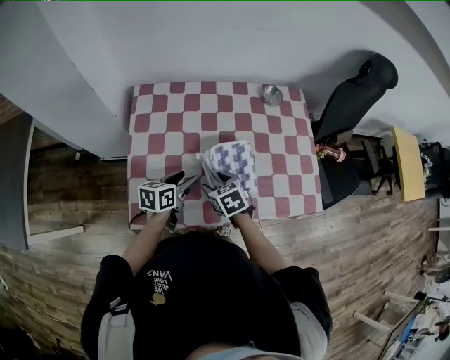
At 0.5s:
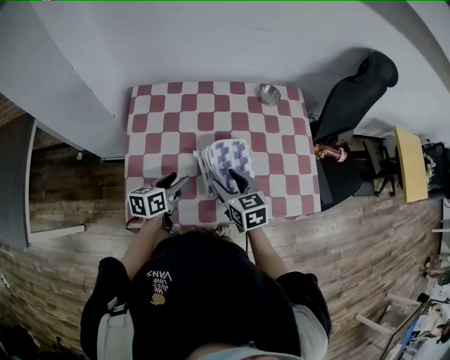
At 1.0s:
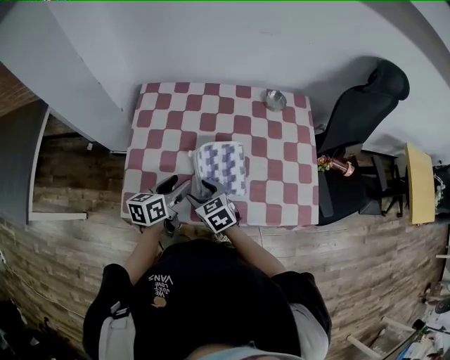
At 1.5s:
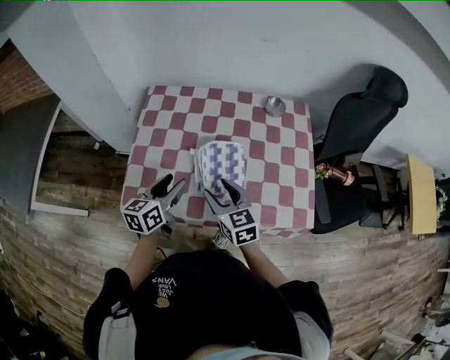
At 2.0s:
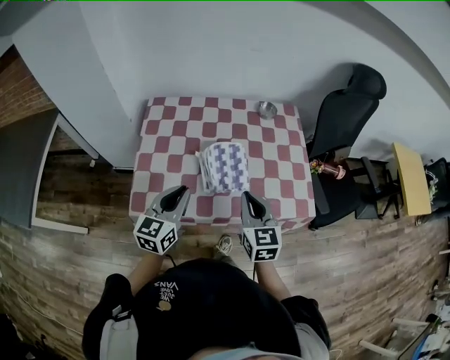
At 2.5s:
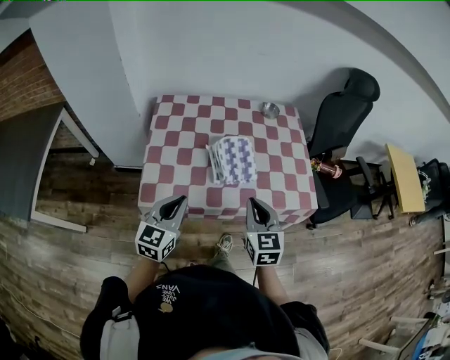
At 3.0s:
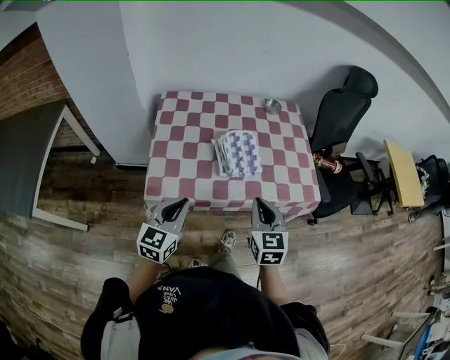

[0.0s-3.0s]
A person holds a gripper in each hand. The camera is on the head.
0.0s to 1.5s: The right gripper swings up and down, some 10 cm each way, with 2 reversals, and turns by about 30 degrees. The left gripper goes about 10 cm upward and backward, and rotates about 30 degrees.
1.5s to 3.0s: The right gripper shifts approximately 15 cm backward and upward, changes its angle by about 30 degrees, and closes up, while the left gripper goes about 15 cm backward, swivels approximately 30 degrees, and closes its fingers.

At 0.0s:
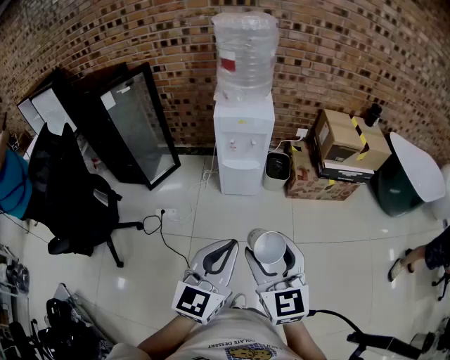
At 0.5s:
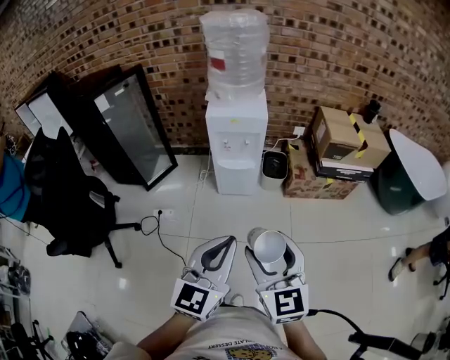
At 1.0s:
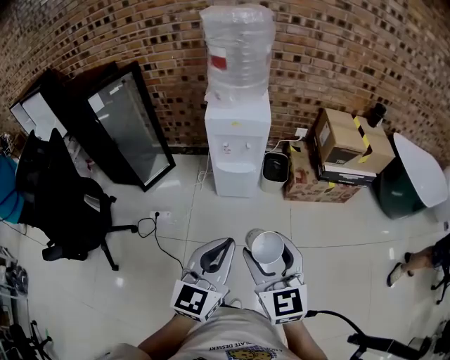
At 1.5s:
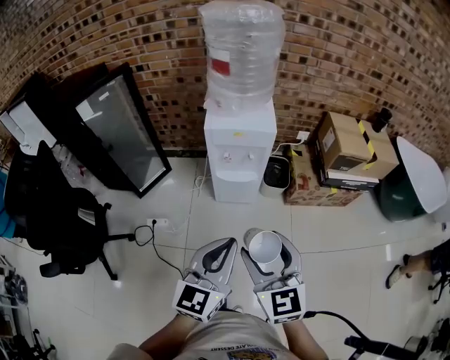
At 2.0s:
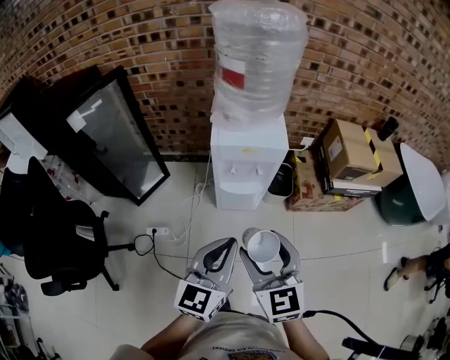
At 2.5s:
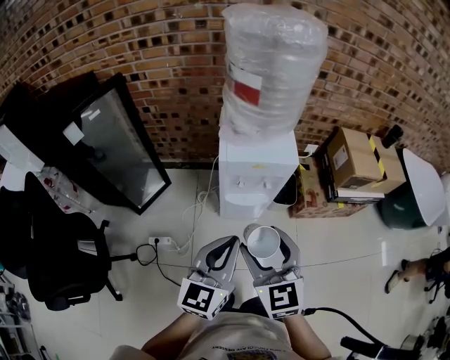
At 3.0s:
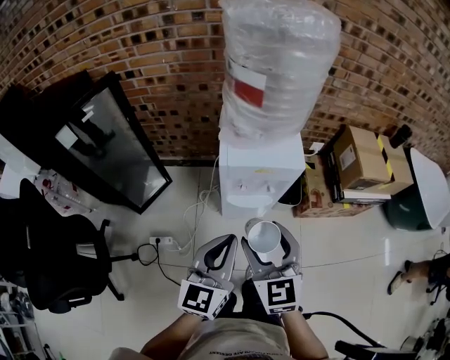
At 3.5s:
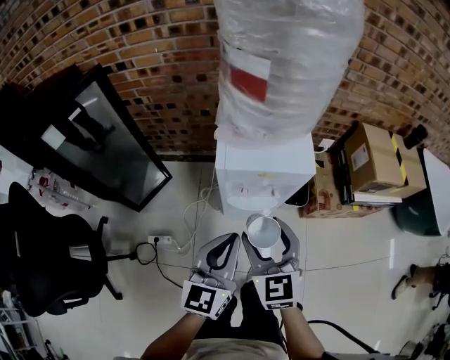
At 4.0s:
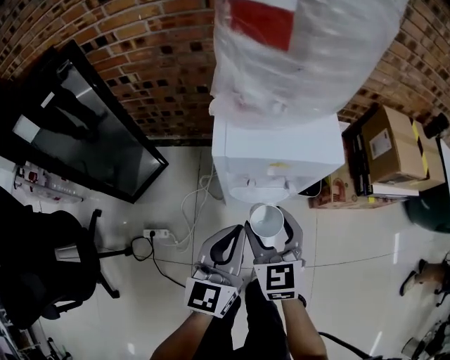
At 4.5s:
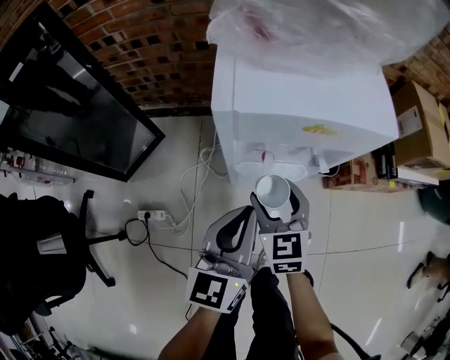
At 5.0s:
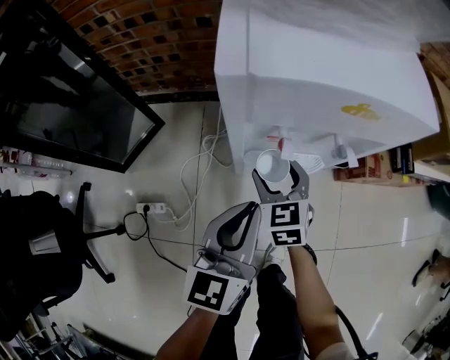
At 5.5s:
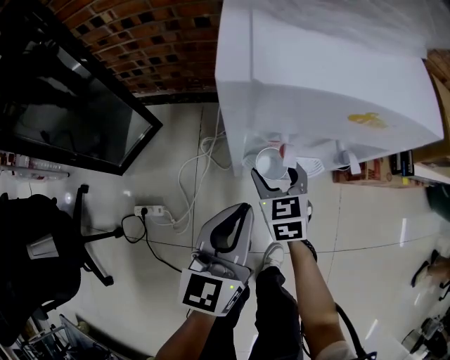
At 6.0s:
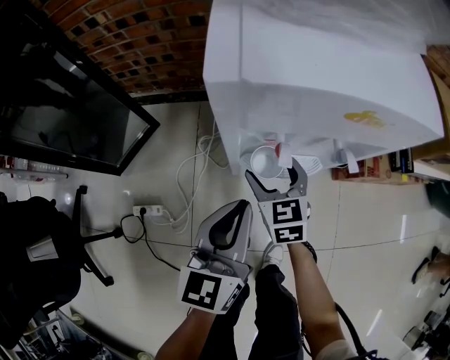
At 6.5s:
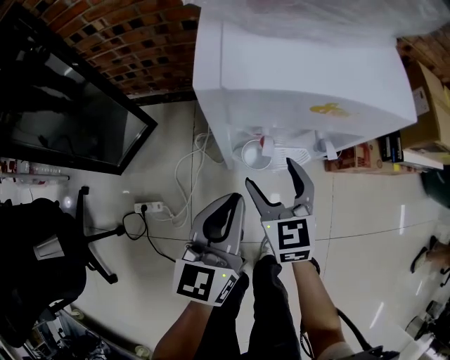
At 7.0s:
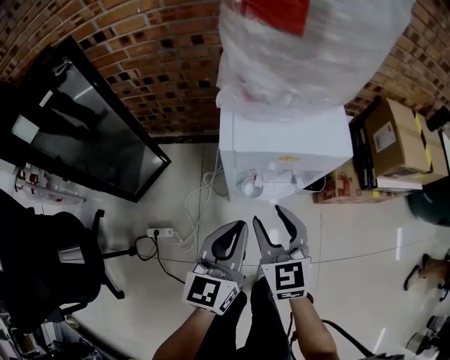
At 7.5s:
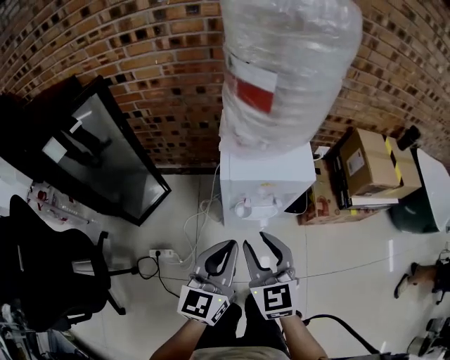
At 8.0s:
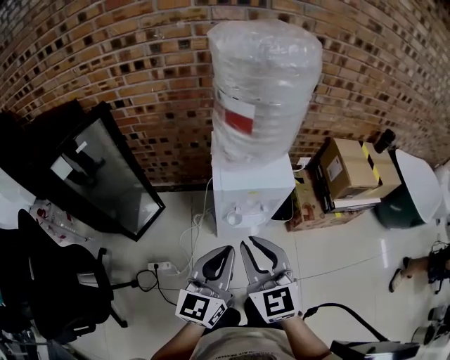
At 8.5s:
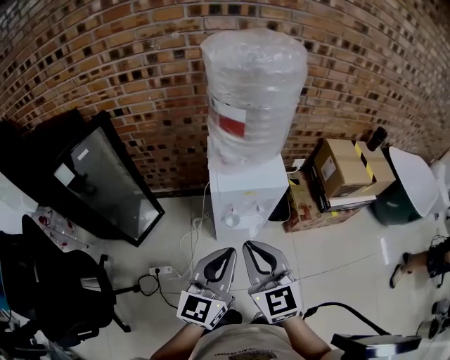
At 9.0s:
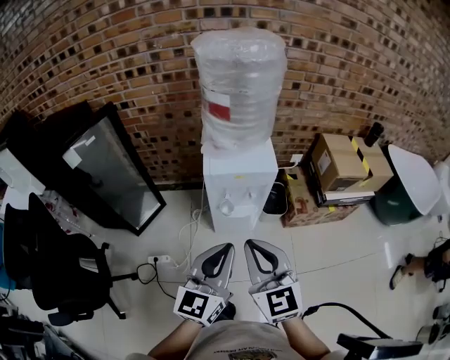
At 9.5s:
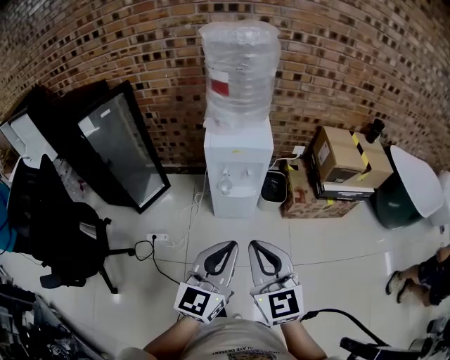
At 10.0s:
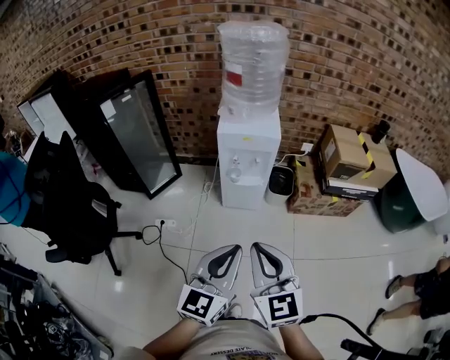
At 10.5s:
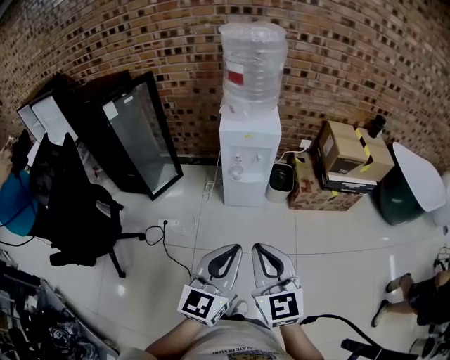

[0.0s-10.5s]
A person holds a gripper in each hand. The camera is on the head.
0.0s to 2.0s: The grippers both shift forward by some 25 cm.
2.0s to 4.0s: Both grippers travel together forward and downward, some 30 cm.
4.0s to 6.5s: The grippers both shift downward by roughly 15 cm.
6.5s to 8.5s: The right gripper shifts roughly 40 cm upward and backward, and closes up, while the left gripper heads upward, covering some 30 cm.
8.5s to 10.5s: Both grippers move backward, approximately 30 cm.

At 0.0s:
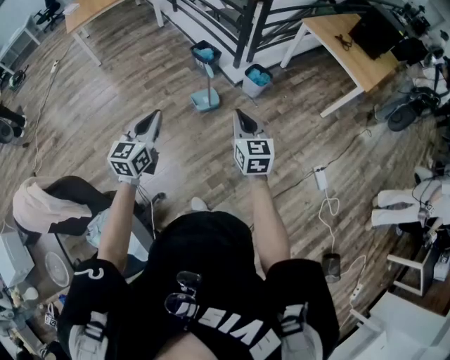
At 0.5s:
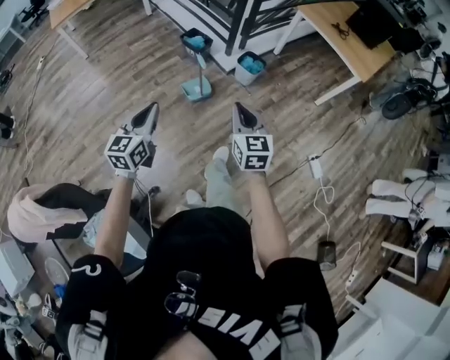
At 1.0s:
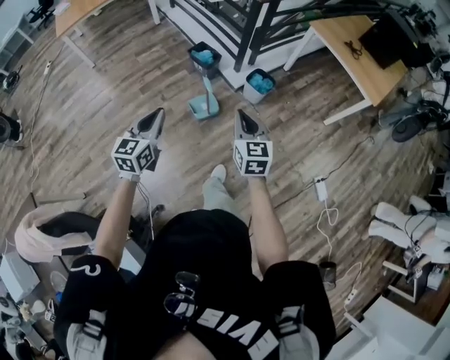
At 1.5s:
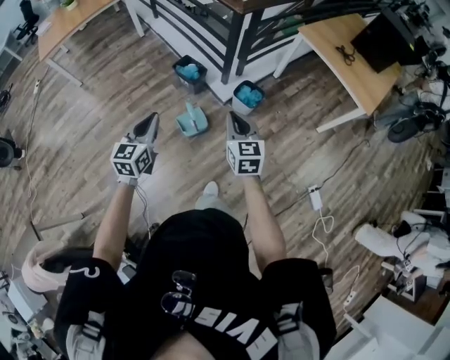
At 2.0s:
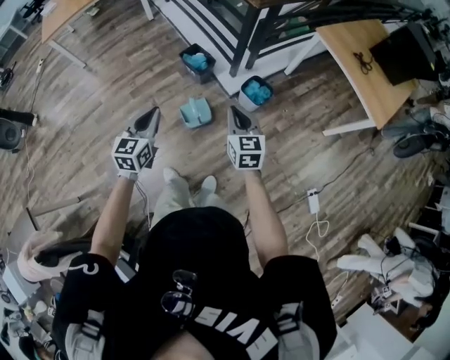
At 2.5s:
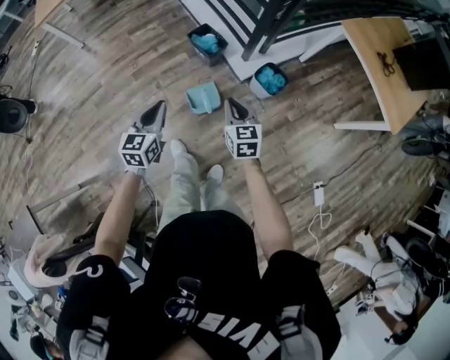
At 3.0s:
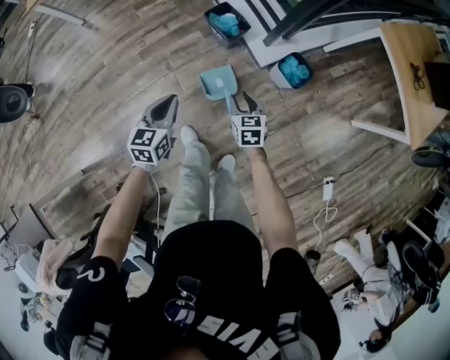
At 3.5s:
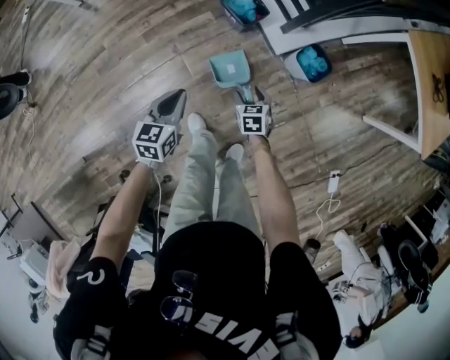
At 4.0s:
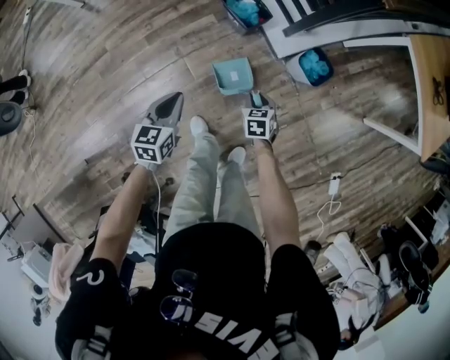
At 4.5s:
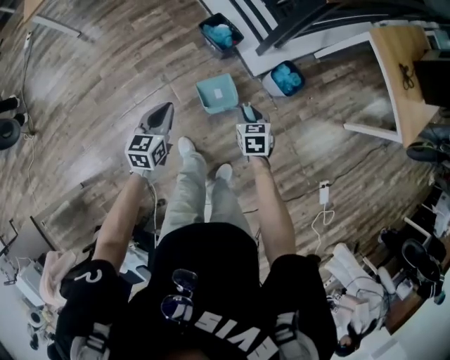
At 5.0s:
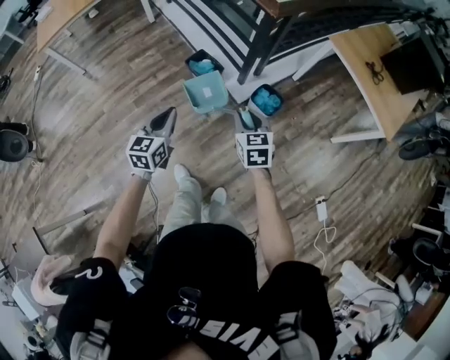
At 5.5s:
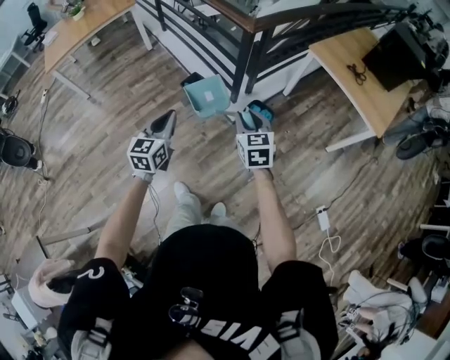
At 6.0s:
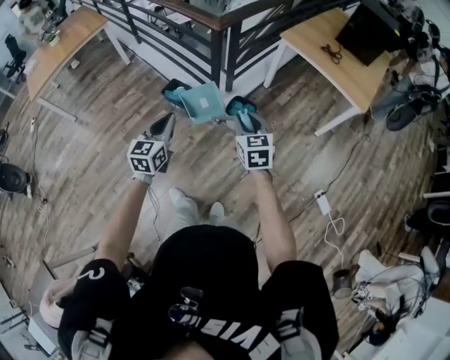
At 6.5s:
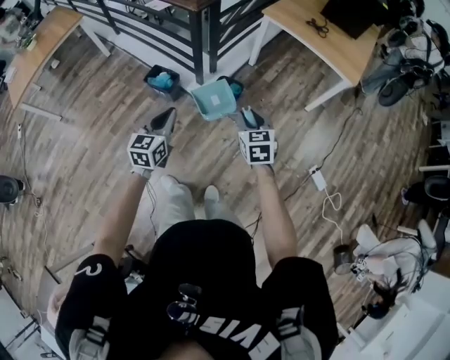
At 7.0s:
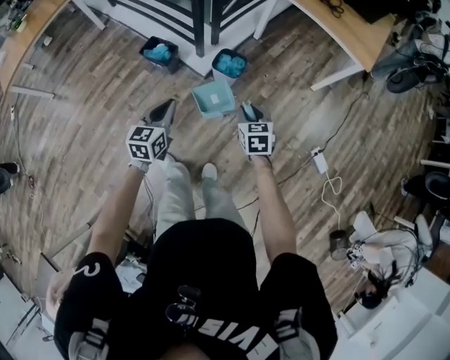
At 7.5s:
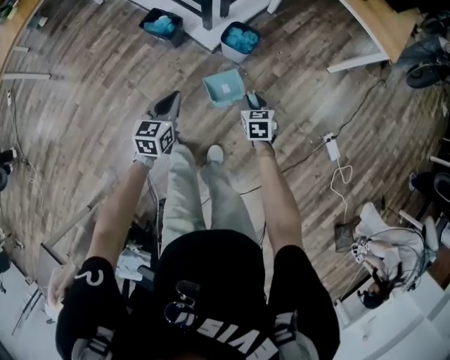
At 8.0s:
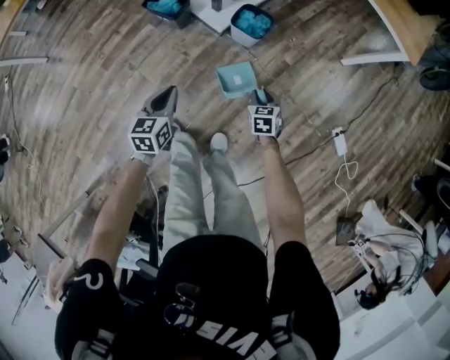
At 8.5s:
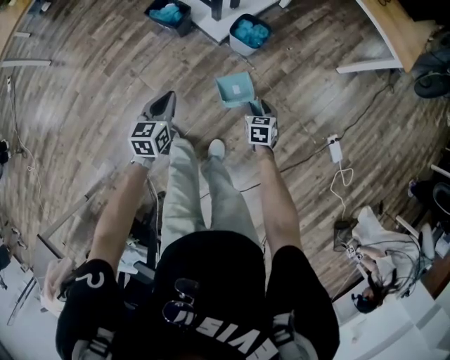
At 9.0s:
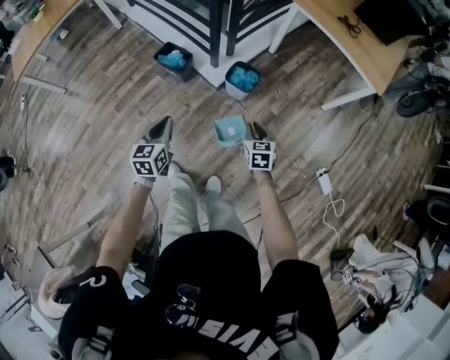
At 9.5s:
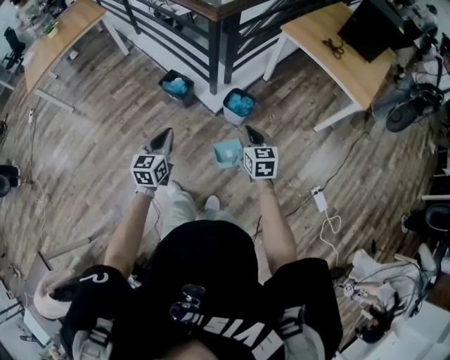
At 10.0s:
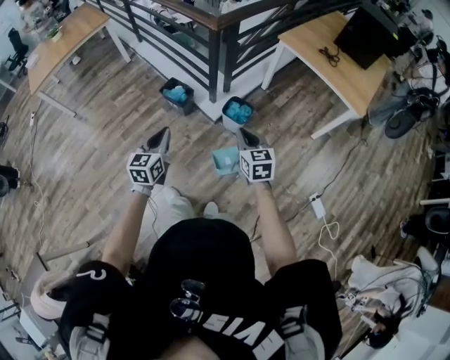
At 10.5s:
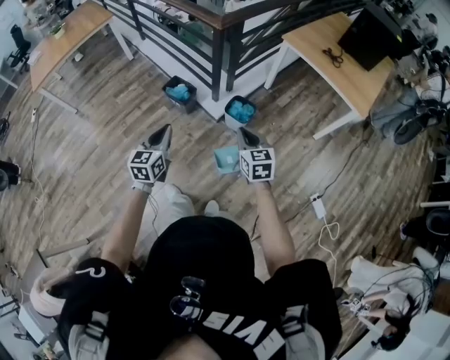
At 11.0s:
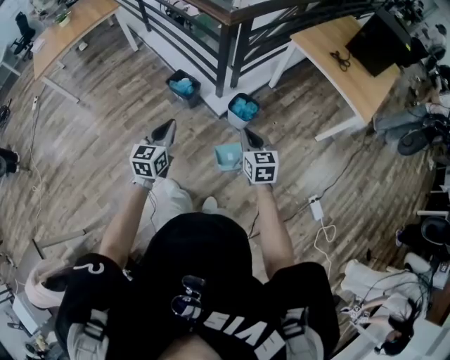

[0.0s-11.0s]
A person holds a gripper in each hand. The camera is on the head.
0.0s to 2.0s: The two grippers go roughly 40 cm forward.
2.0s to 3.5s: The grippers both shift downward, forward and to the left by roughly 40 cm. The right gripper angles its fingers downward, by some 40 degrees, and opens up.
3.5s to 5.5s: Both grippers travel together upward and to the right, roughly 40 cm. The right gripper tips its fingers upward by approximately 30 degrees, and closes up, while the left gripper rotates about 20 degrees.
5.5s to 7.5s: Both grippers move downward and to the right, about 30 cm. The right gripper rotates some 30 degrees; the left gripper rotates some 20 degrees.
7.5s to 9.0s: Both grippers travel together upward, some 10 cm.
9.0s to 11.0s: The two grippers go about 15 cm upward.

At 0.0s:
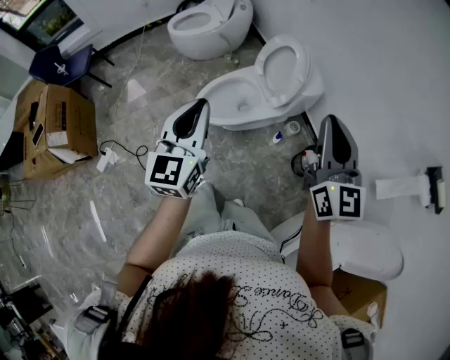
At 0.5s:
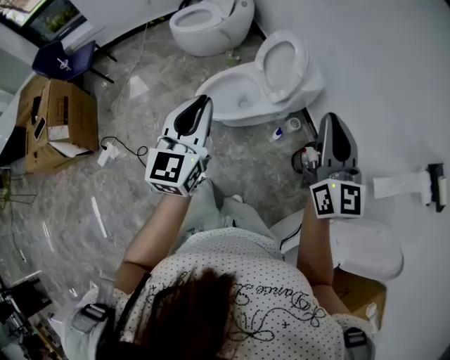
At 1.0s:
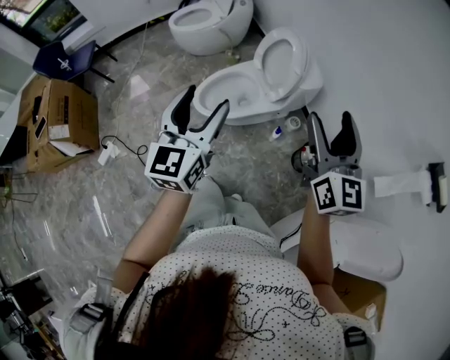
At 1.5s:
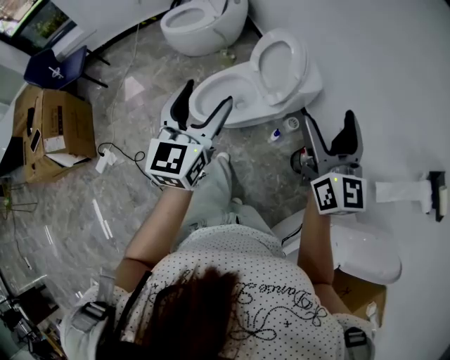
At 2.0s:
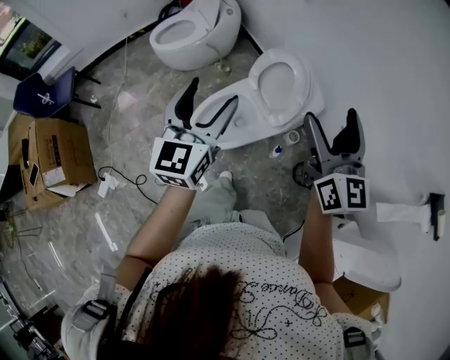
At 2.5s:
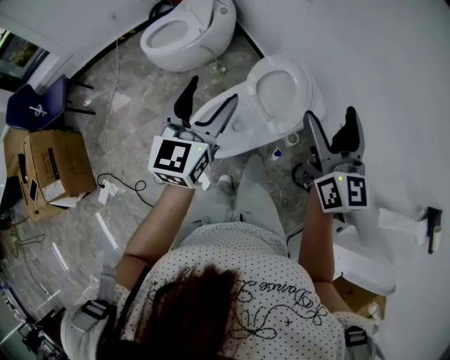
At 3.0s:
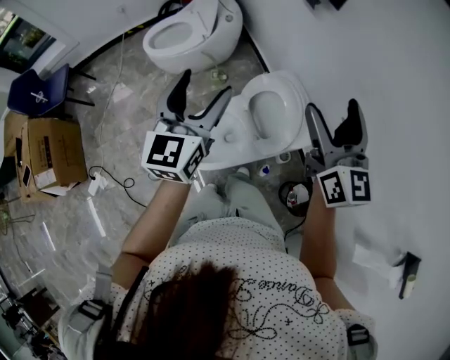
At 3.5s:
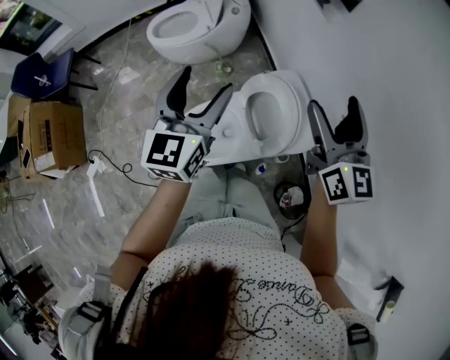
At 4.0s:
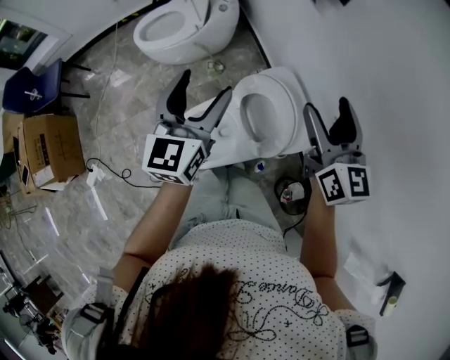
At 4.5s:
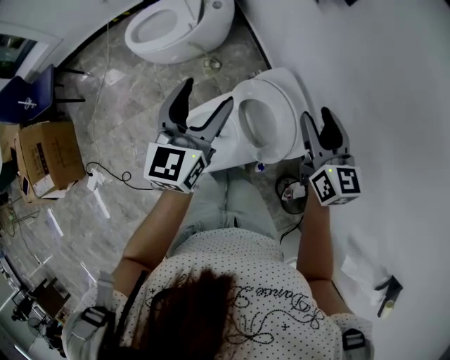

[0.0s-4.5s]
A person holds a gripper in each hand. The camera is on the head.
0.0s to 2.0s: Both grippers move forward, roughly 20 cm. The right gripper opens. The left gripper opens up.
2.0s to 4.5s: The left gripper heads forward, covering some 30 cm, while the right gripper travels forward and downward by about 35 cm, turns by some 20 degrees, and closes its fingers.
